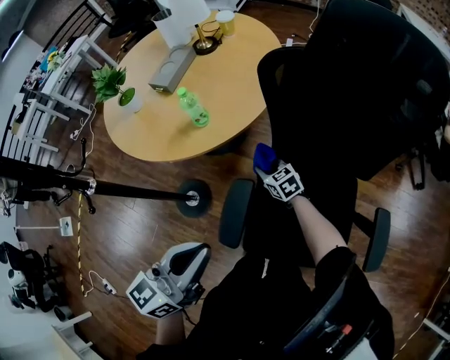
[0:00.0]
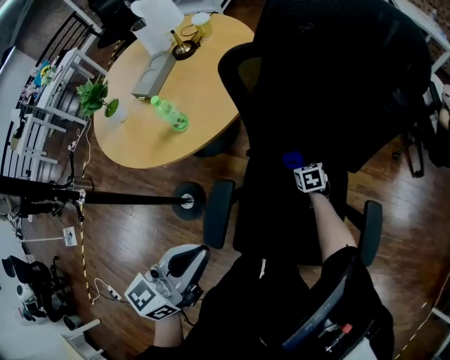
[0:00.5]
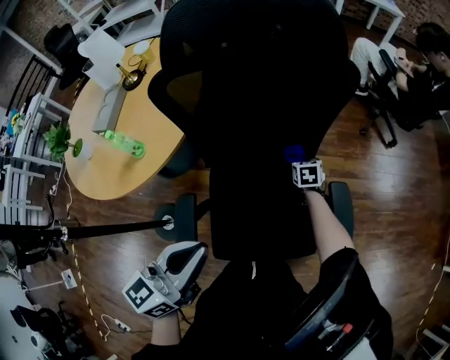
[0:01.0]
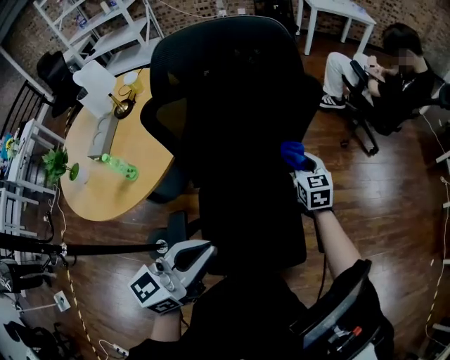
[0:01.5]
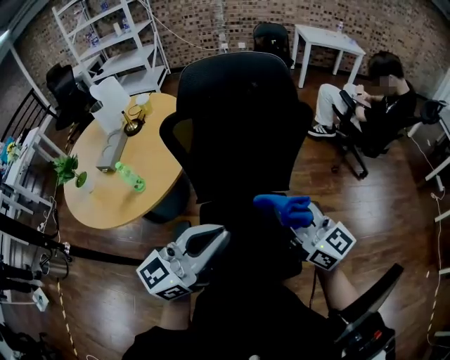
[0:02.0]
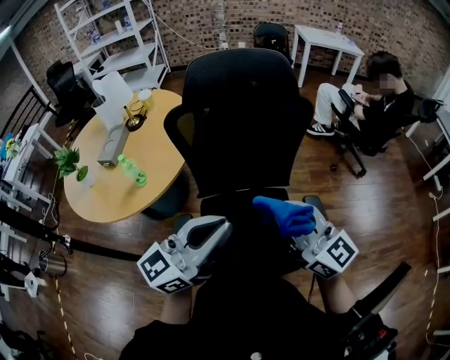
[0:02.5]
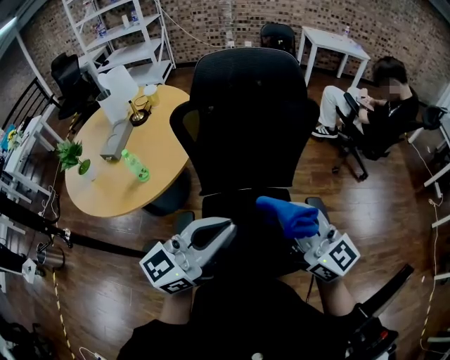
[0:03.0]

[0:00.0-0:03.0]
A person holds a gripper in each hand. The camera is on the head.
0:00.0 to 0:01.5: The left gripper moves about 20 cm, and turns by approximately 30 degrees, while the right gripper moves some 50 cm, and rotates roughly 50 degrees.
0:01.5 to 0:03.0: The right gripper moves backward and upward, approximately 35 cm, and angles its fingers upward, by roughly 40 degrees, while the left gripper moves upward, approximately 5 cm.

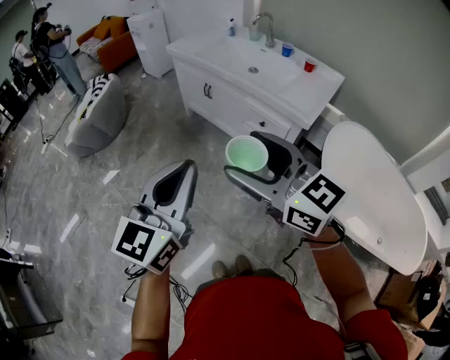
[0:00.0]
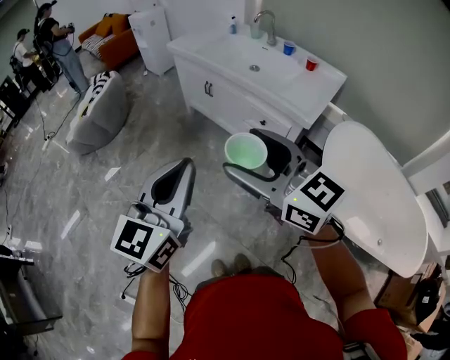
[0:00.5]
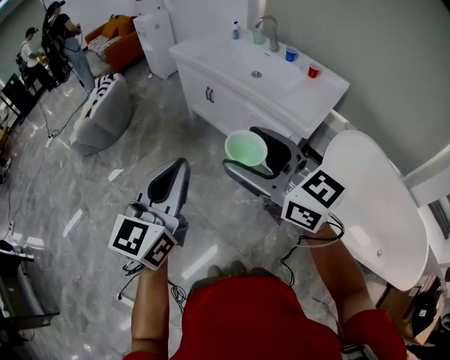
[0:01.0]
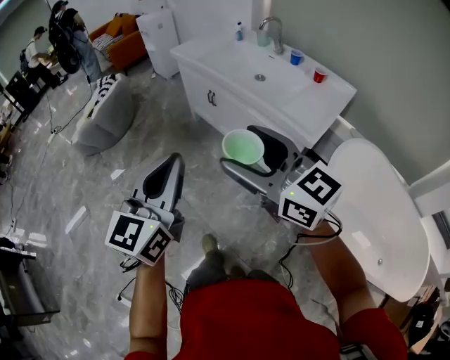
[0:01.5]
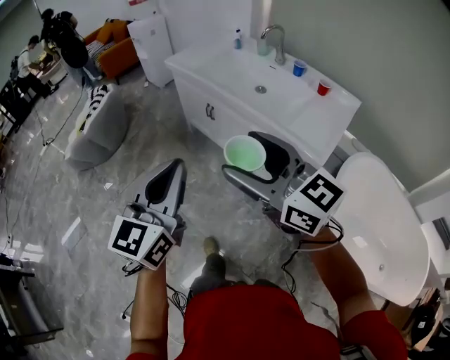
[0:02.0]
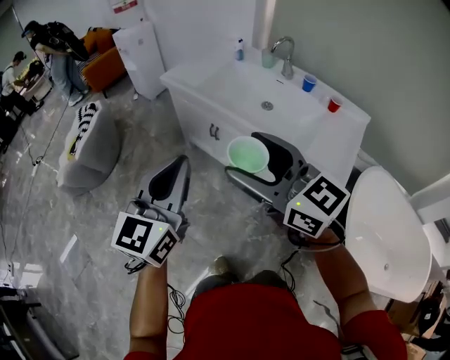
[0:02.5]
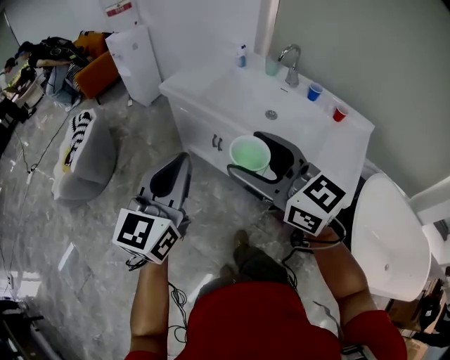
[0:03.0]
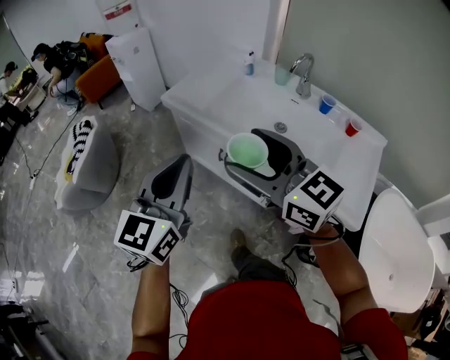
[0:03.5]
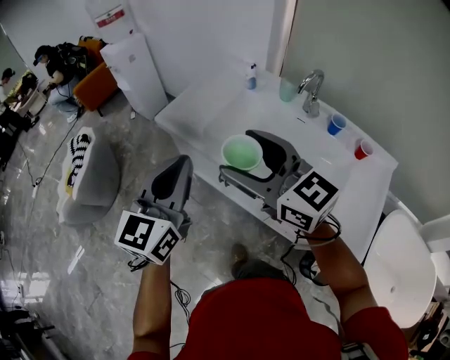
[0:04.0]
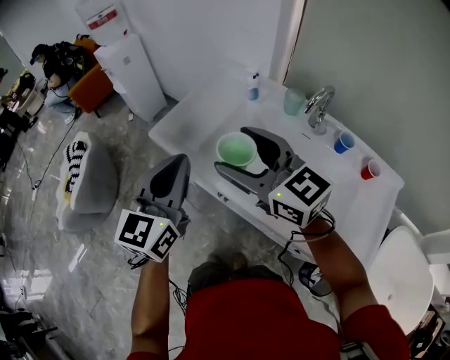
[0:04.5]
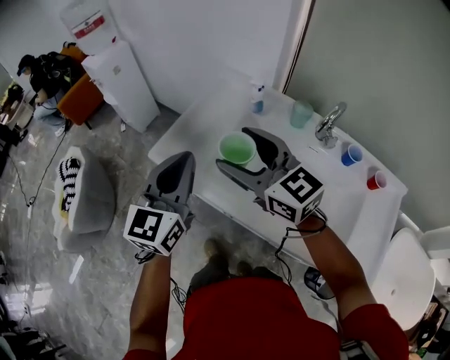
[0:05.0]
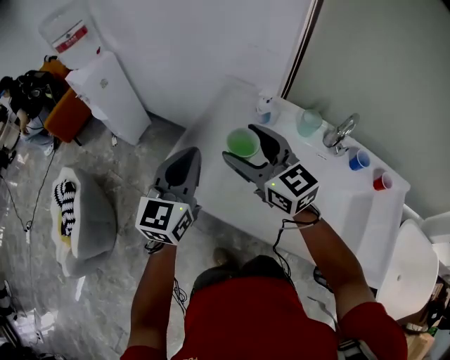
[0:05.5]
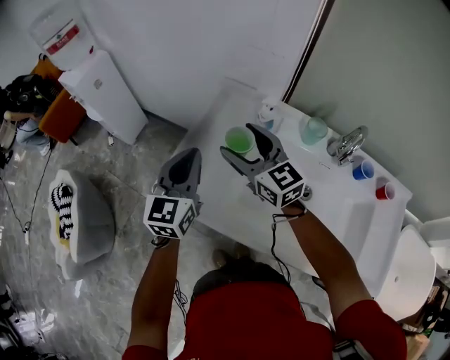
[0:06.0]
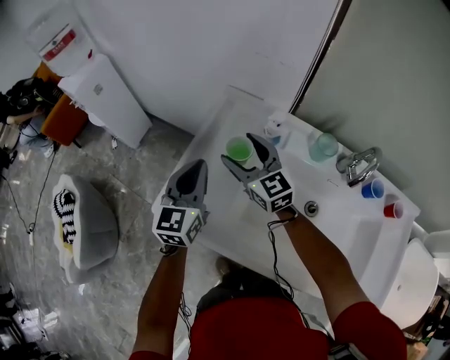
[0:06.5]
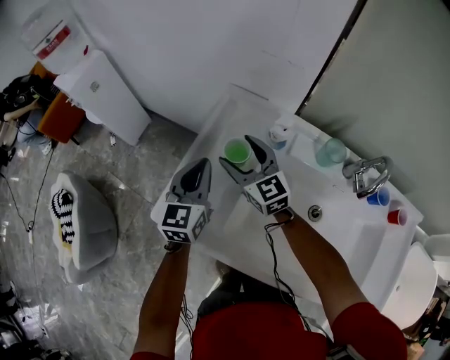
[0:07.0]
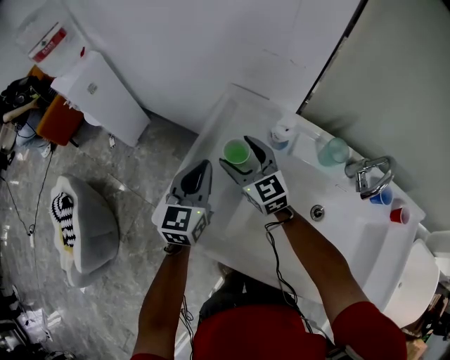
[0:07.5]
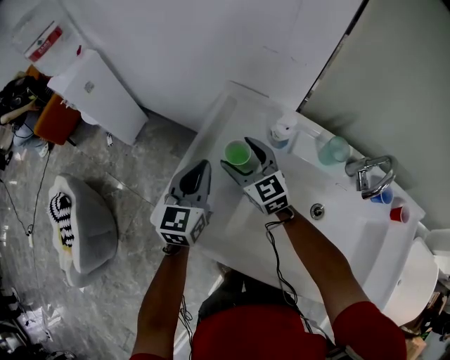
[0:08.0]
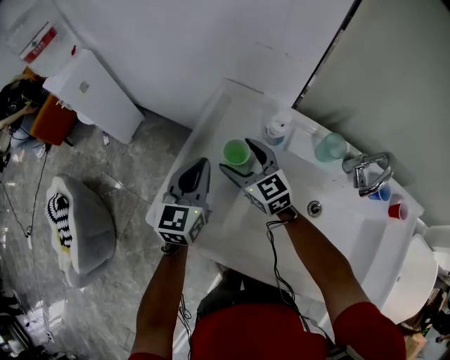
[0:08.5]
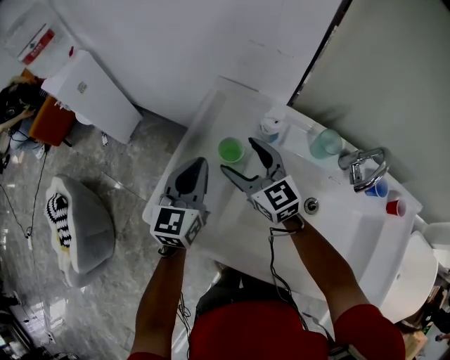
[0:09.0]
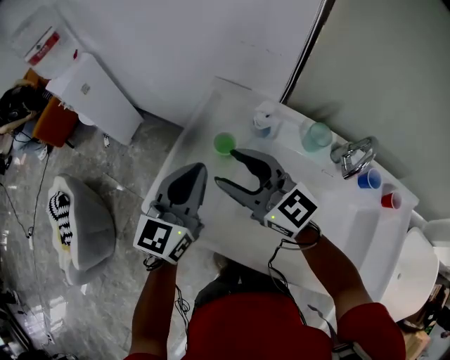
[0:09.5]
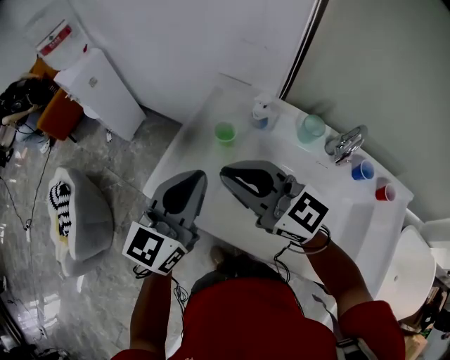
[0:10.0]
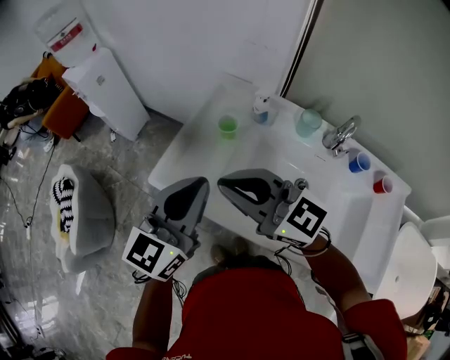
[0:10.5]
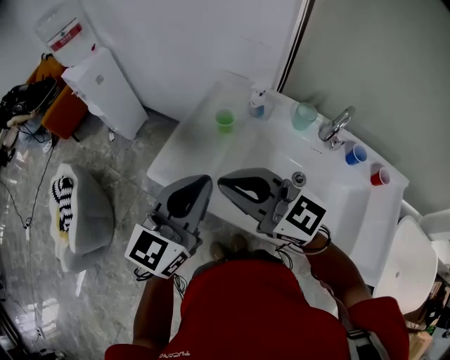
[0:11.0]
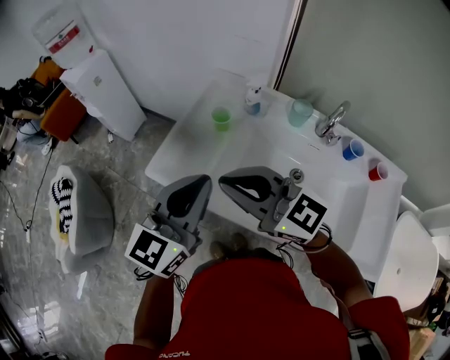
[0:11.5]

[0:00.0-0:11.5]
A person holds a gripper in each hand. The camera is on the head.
0:00.0 to 0:02.0: Both grippers travel together forward, about 20 cm.
0:02.0 to 0:04.0: The pair of grippers is taken forward, some 50 cm.
0:04.0 to 0:06.0: The grippers both shift forward by approximately 40 cm. The right gripper turns by about 20 degrees.
0:06.0 to 0:07.5: The left gripper heads forward and downward, covering some 10 cm. The right gripper shifts about 15 cm downward and forward.
0:07.5 to 0:09.5: Both grippers travel together upward and backward, roughly 15 cm. The right gripper rotates about 20 degrees.
0:09.5 to 0:11.5: Both grippers travel together backward, roughly 15 cm. The right gripper closes.

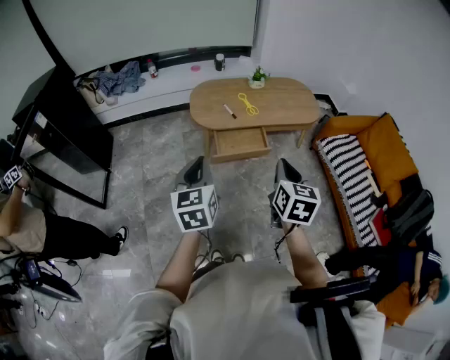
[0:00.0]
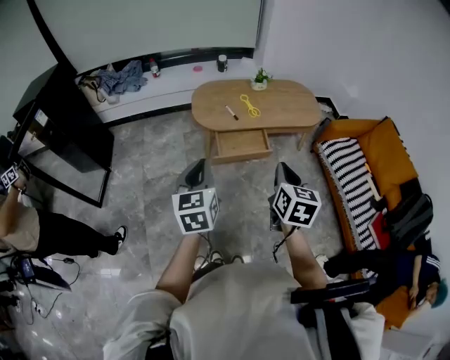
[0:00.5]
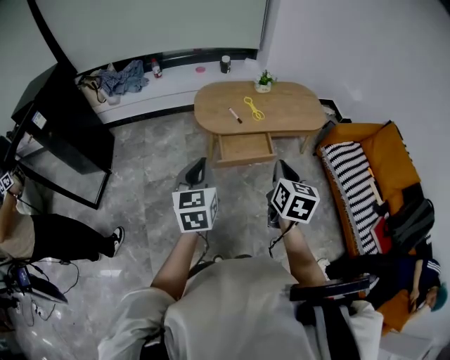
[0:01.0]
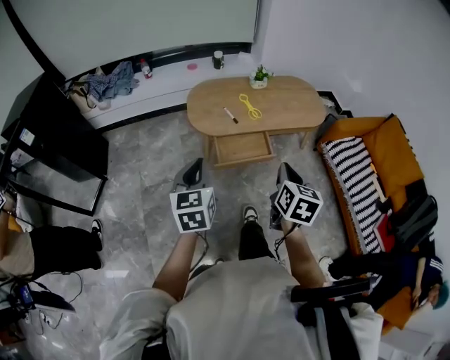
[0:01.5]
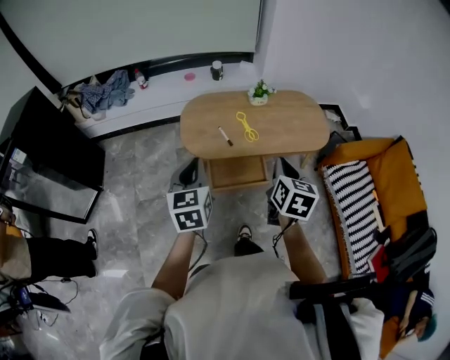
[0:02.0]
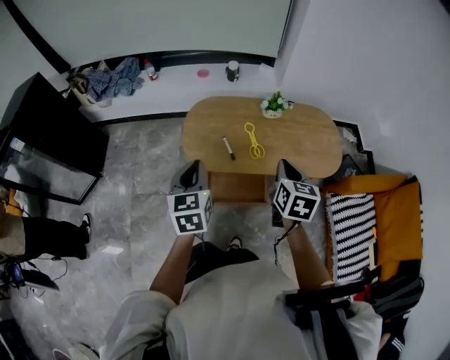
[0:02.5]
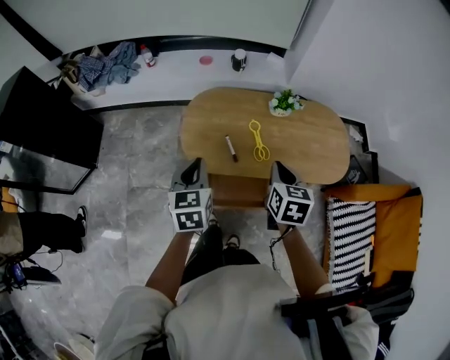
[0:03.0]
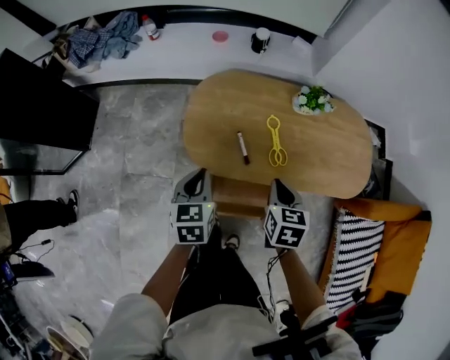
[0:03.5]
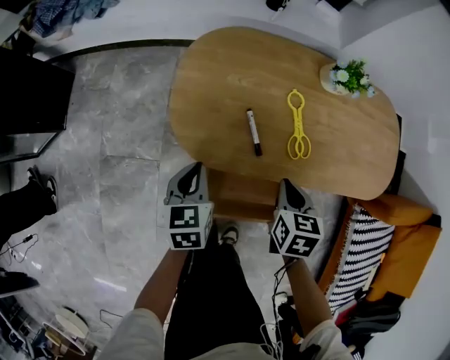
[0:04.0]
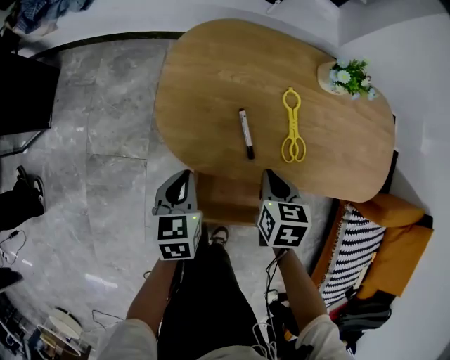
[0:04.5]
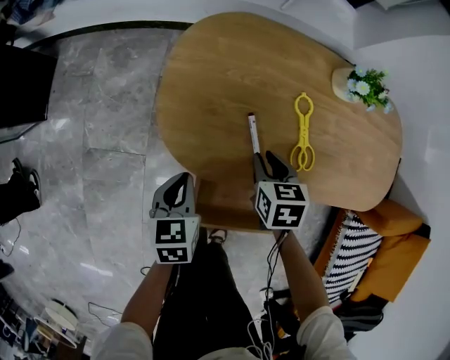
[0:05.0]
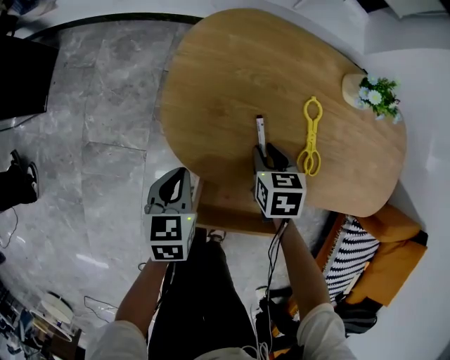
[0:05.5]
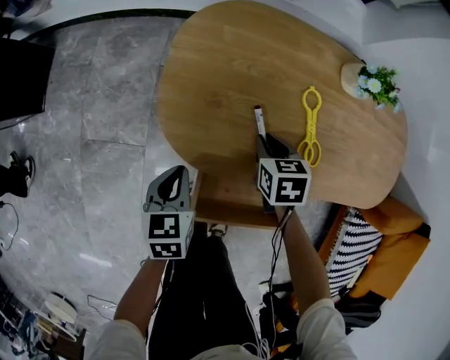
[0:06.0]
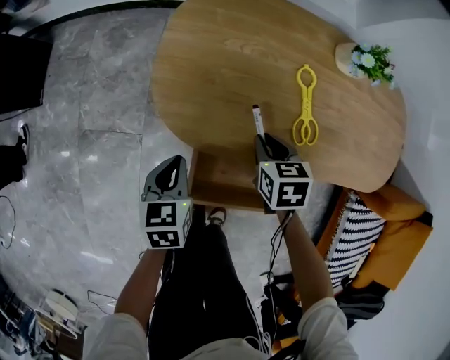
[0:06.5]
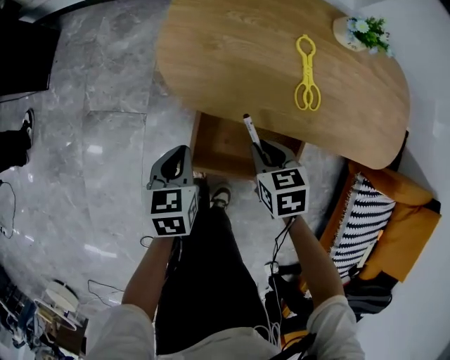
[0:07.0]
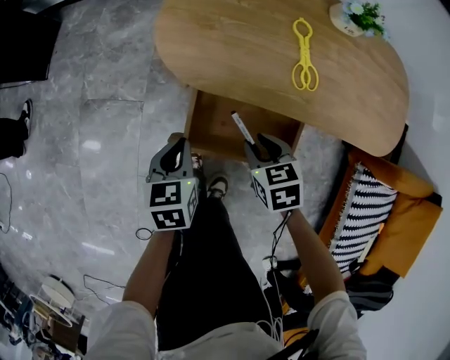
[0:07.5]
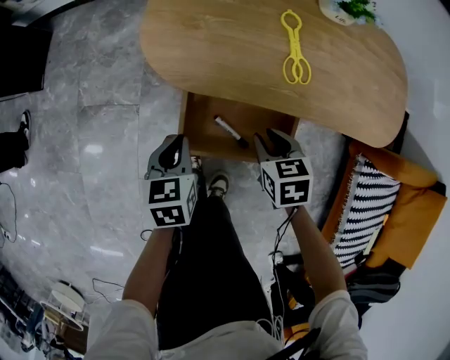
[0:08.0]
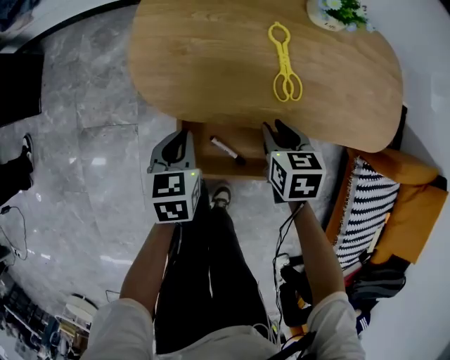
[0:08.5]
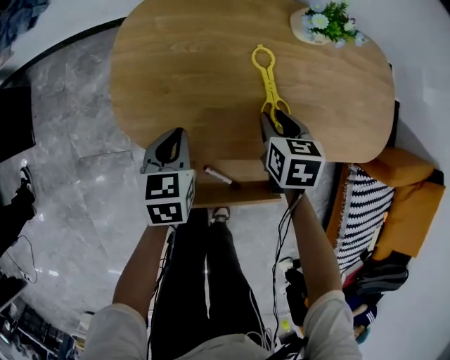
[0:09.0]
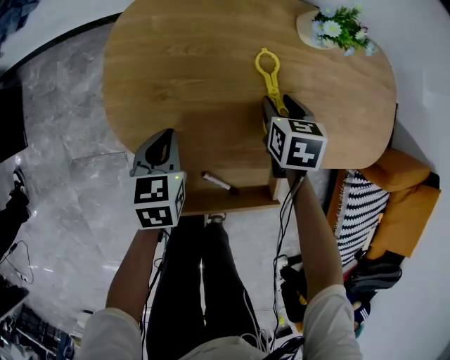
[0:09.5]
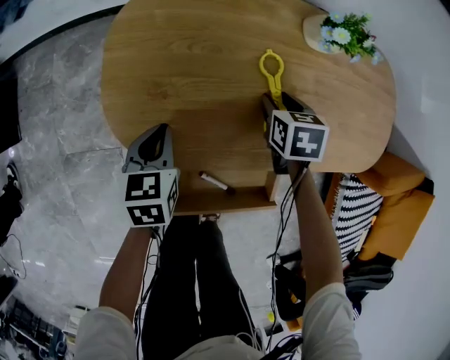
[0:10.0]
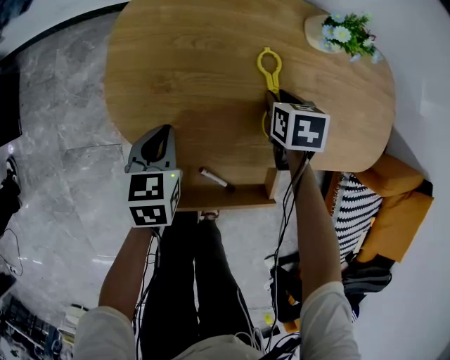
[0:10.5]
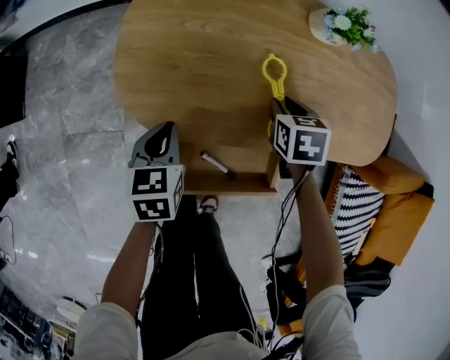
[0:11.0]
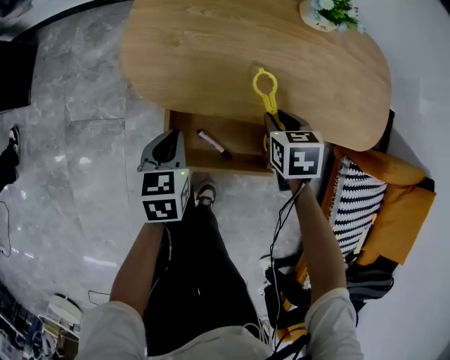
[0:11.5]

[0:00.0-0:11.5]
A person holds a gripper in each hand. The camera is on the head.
0:00.0 to 0:02.0: The two grippers go about 25 cm forward.
0:02.0 to 0:04.0: Both grippers move downward and forward, some 50 cm. The left gripper swivels approximately 30 degrees. Meanwhile the right gripper changes its angle by some 30 degrees.
0:04.0 to 0:06.0: The left gripper goes some 10 cm downward; the right gripper moves downward, forward and to the left, approximately 20 cm.
0:06.0 to 0:07.5: Both grippers move backward, approximately 20 cm.
0:07.5 to 0:09.5: The left gripper moves roughly 25 cm. Meanwhile the right gripper shifts by roughly 30 cm, and turns by some 30 degrees.
0:09.5 to 0:11.5: Both grippers travel together backward, roughly 15 cm.
